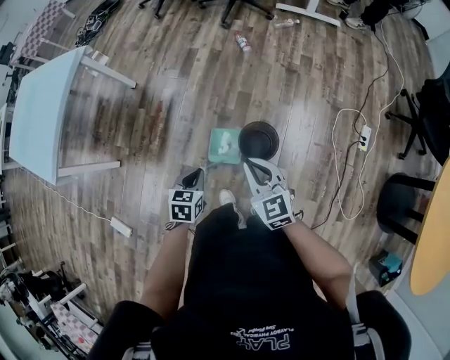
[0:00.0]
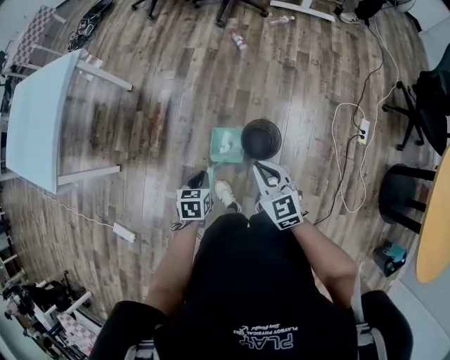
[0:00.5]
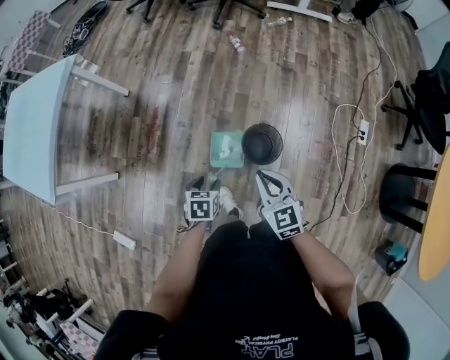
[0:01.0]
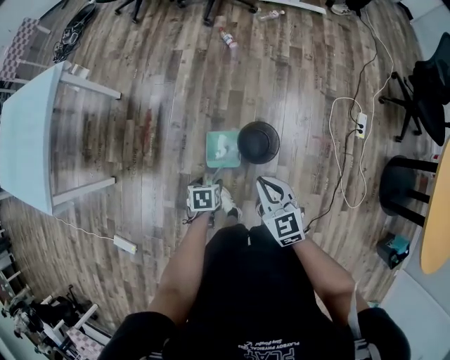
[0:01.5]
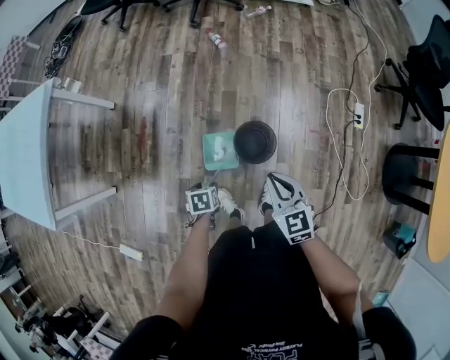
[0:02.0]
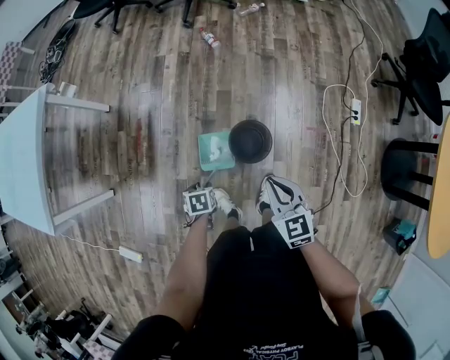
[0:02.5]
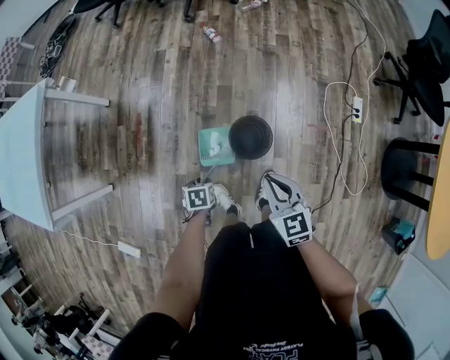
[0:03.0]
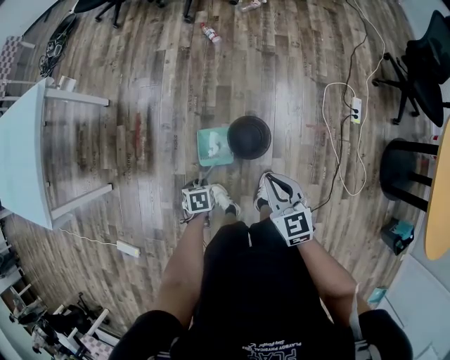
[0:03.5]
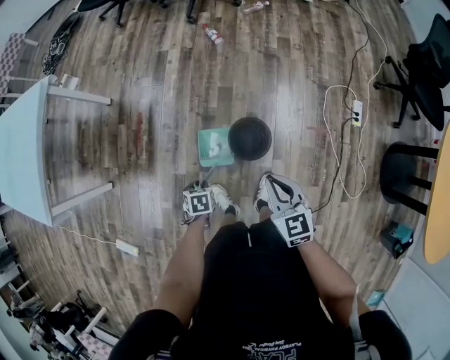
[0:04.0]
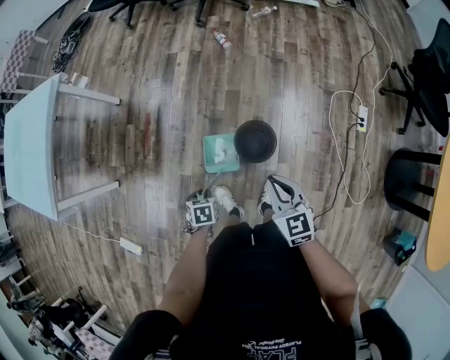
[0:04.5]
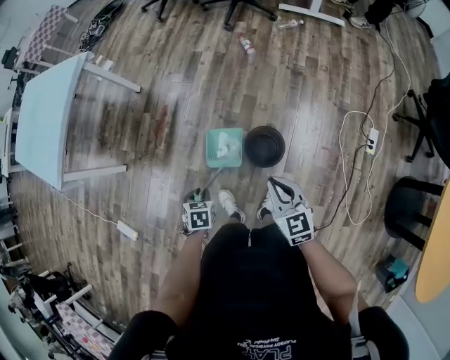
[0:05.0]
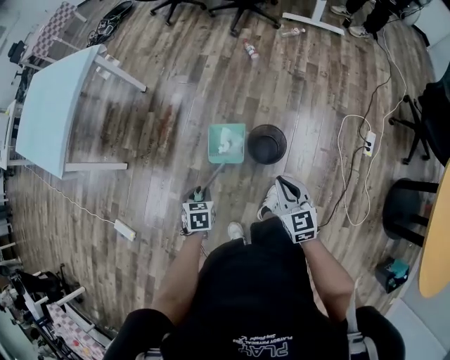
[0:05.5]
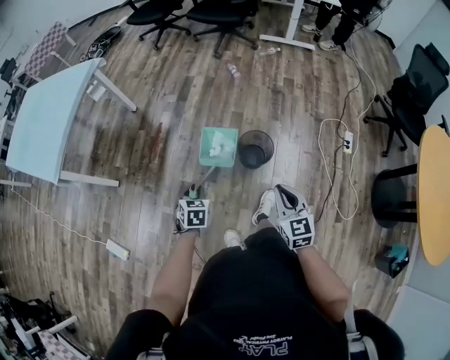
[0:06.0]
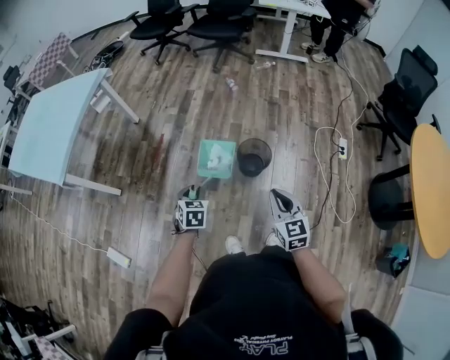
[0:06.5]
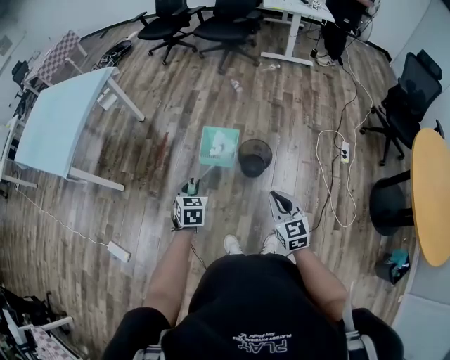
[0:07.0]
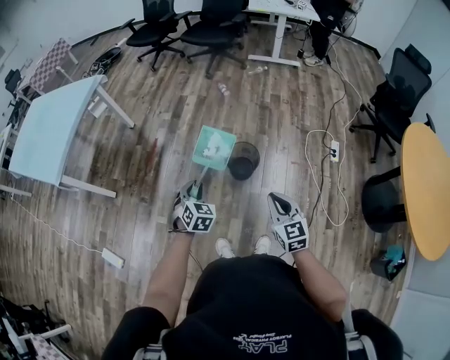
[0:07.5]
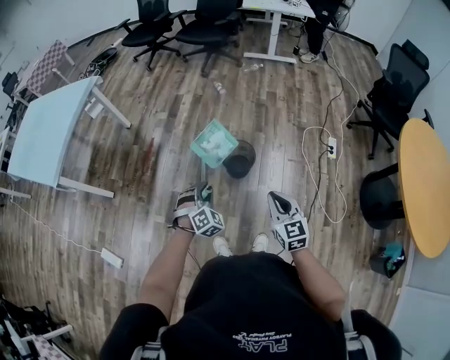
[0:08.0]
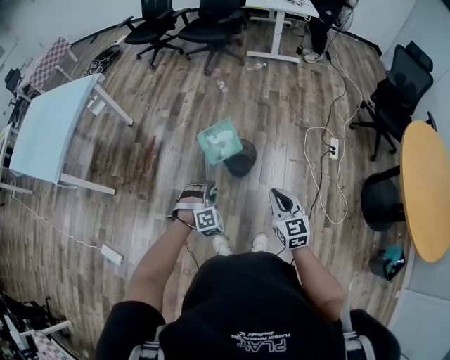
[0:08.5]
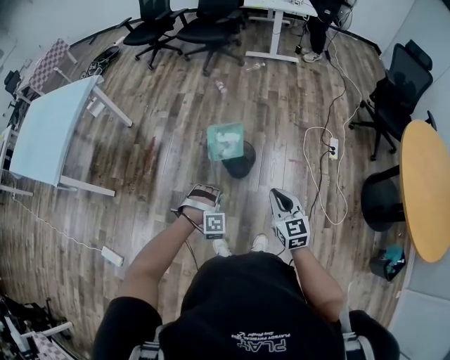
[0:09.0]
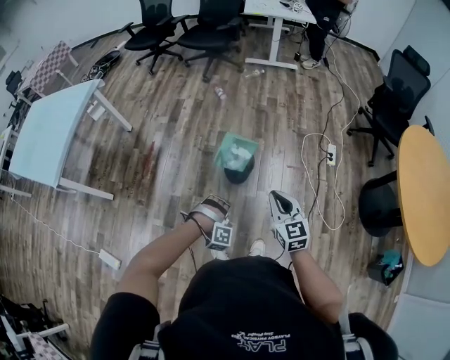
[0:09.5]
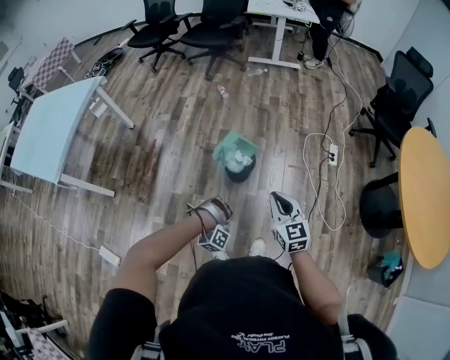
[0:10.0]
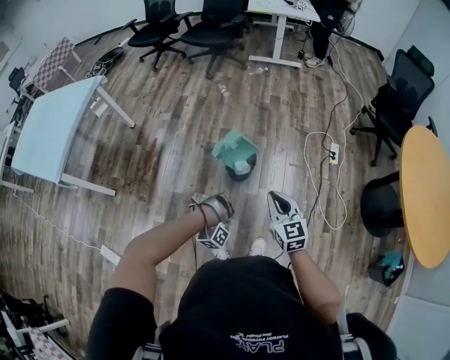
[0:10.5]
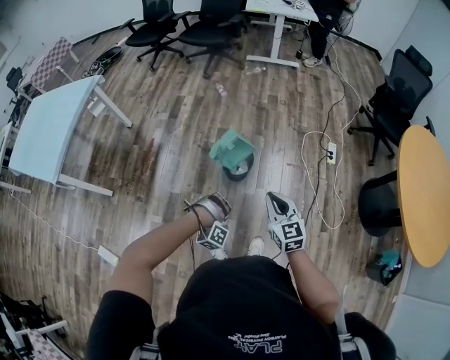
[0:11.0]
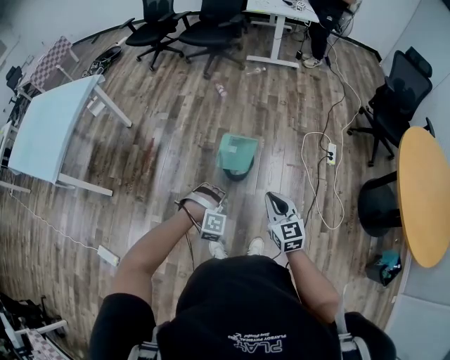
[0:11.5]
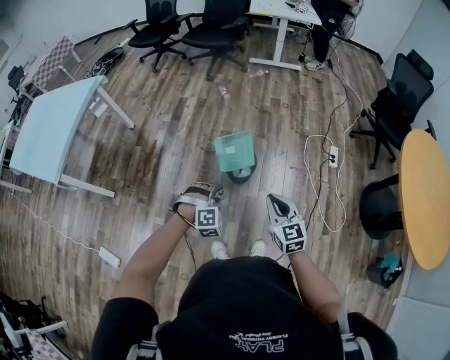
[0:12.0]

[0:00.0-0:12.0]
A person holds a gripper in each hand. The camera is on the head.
0.0 to 2.0 s: The left gripper travels downward by about 15 cm, changes its angle by approximately 30 degrees, and opens up; the right gripper travels downward by some 5 cm.
2.0 to 4.0 s: The left gripper closes its fingers.
4.0 to 6.0 s: The left gripper ends up about 20 cm from where it was, and swivels about 20 degrees; the right gripper ends up approximately 20 cm from where it was.
6.0 to 8.0 s: The right gripper moves backward and to the right, approximately 10 cm; the left gripper shifts about 15 cm to the right, upward and backward, and twists about 50 degrees clockwise, seen from behind.
8.0 to 10.0 s: The left gripper heads backward, downward and to the right, covering about 15 cm, and rolls clockwise, seen from behind, by about 80 degrees.
10.0 to 12.0 s: The left gripper moves upward and forward, roughly 10 cm, and rotates around the line of its fingers by roughly 50 degrees, counterclockwise from behind.

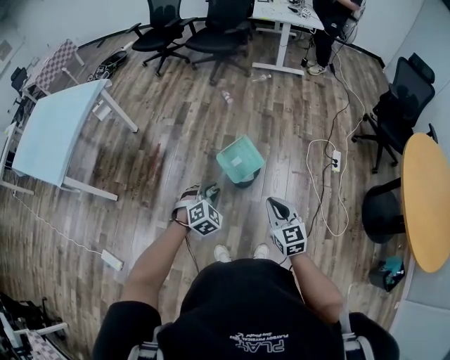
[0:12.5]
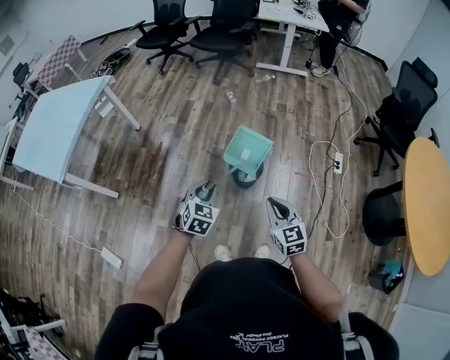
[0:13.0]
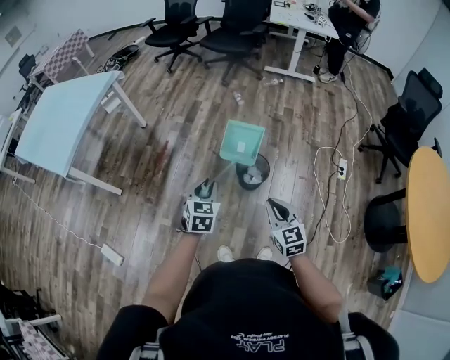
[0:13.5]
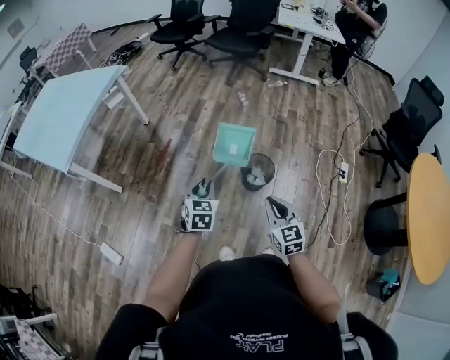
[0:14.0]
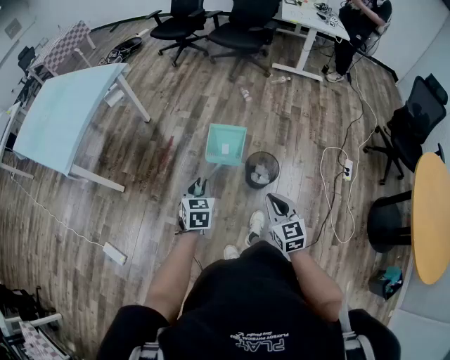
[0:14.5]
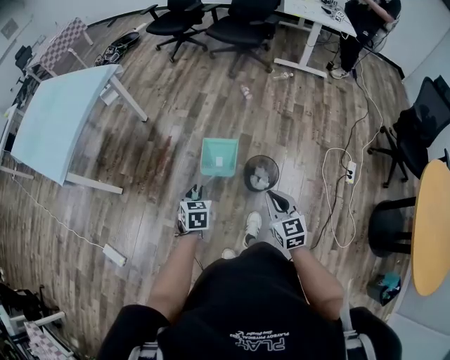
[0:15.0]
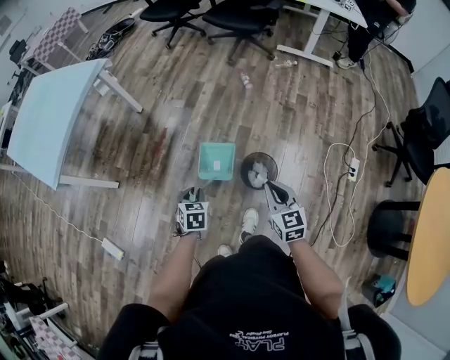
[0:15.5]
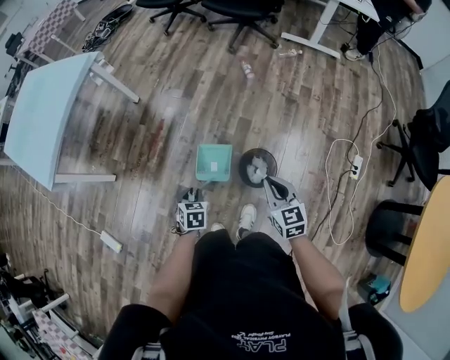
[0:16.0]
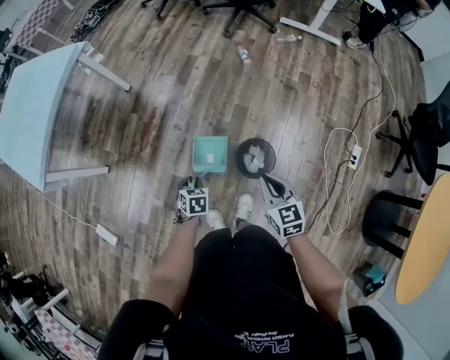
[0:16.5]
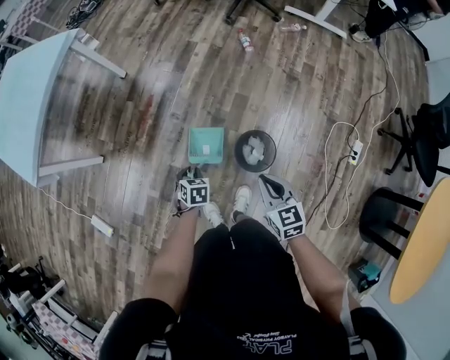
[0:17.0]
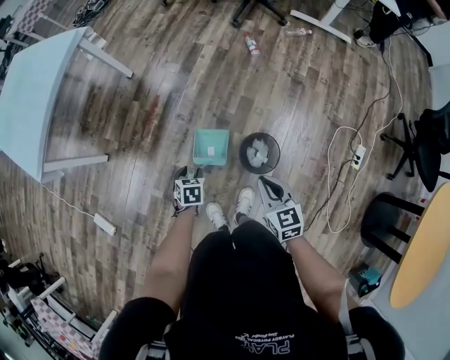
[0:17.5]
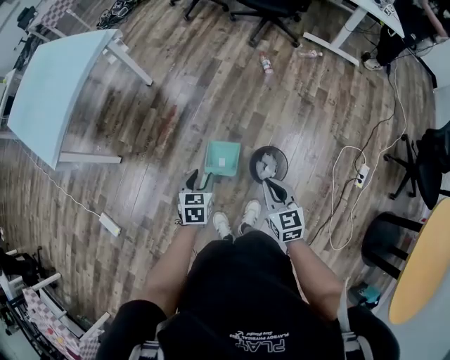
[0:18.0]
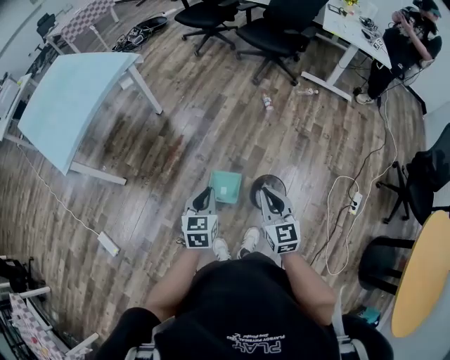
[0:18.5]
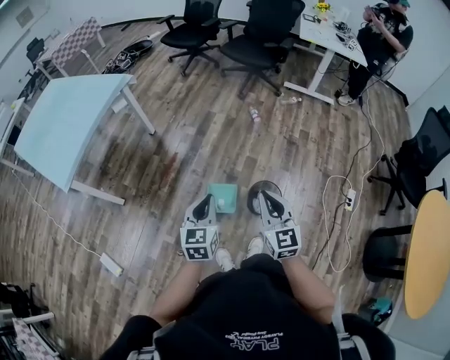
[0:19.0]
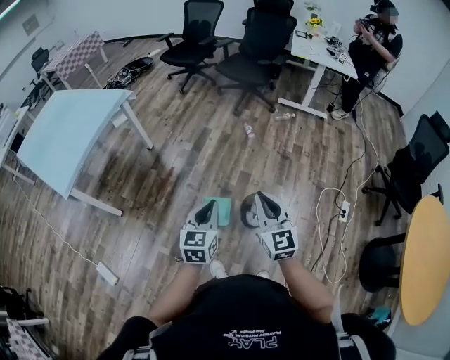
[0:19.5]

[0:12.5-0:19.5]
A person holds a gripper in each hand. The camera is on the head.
12.5 to 14.5 s: The right gripper shifts roughly 15 cm to the left and forward; the left gripper is displaced to the left by about 20 cm, and rotates around the line of its fingers by roughly 50 degrees, counterclockwise from behind.
14.5 to 16.0 s: The left gripper is displaced downward, forward and to the right by about 20 cm, and rotates approximately 20 degrees, while the right gripper moves forward and to the right, roughly 25 cm.
16.0 to 17.5 s: The right gripper shifts by about 5 cm, while the left gripper heads downward, covering some 10 cm, and opens.
17.5 to 19.5 s: Both grippers move upward, some 30 cm. The left gripper tilts its fingers about 50 degrees upward, and closes its fingers. Meanwhile the right gripper swivels some 30 degrees.

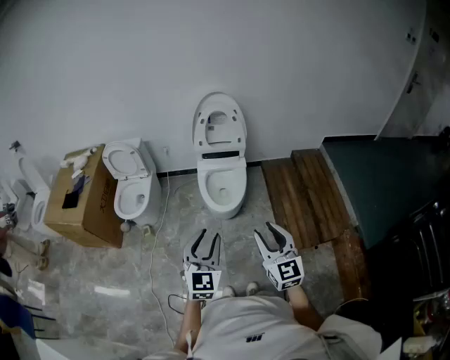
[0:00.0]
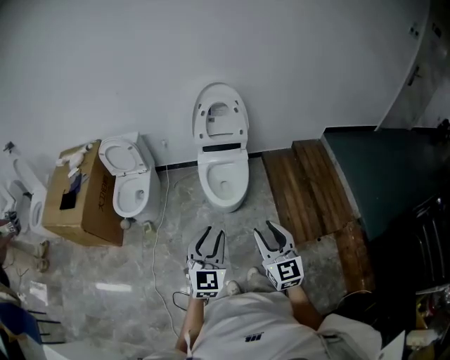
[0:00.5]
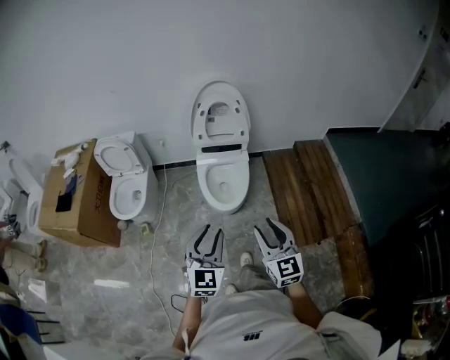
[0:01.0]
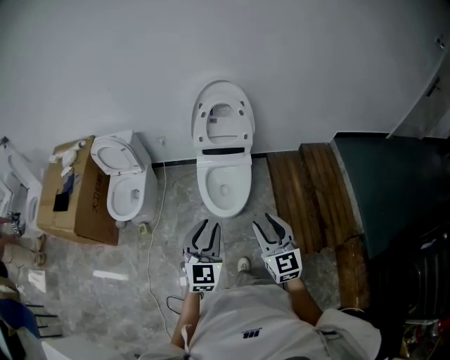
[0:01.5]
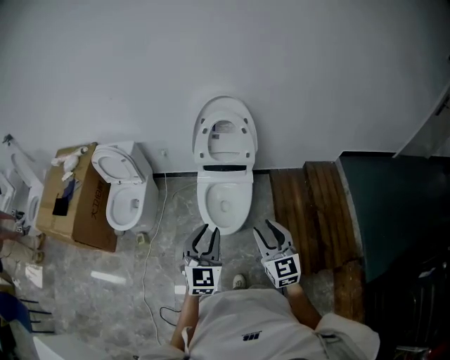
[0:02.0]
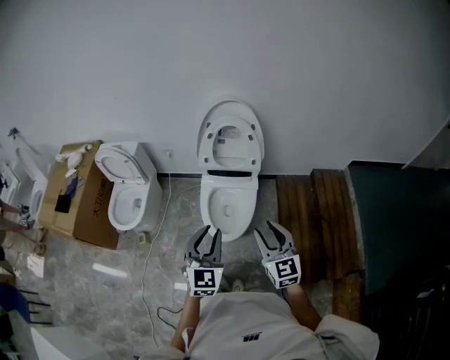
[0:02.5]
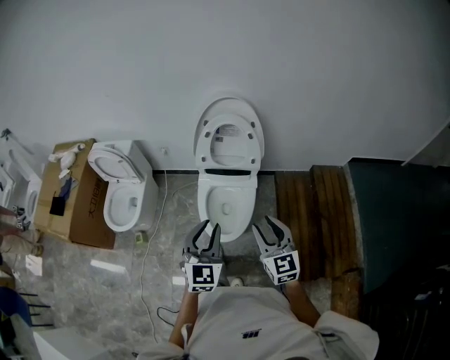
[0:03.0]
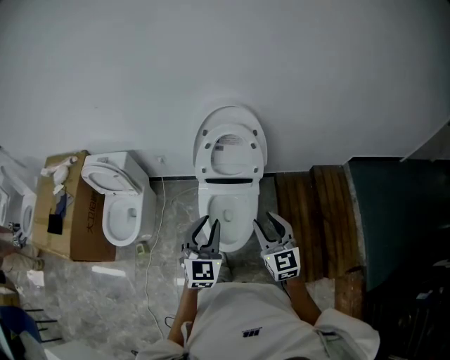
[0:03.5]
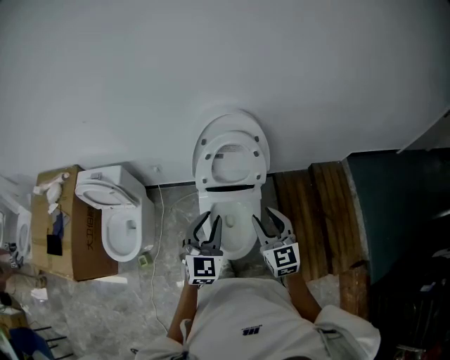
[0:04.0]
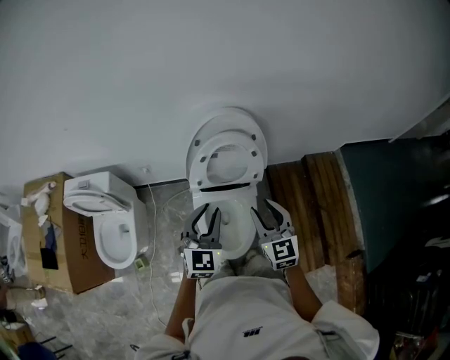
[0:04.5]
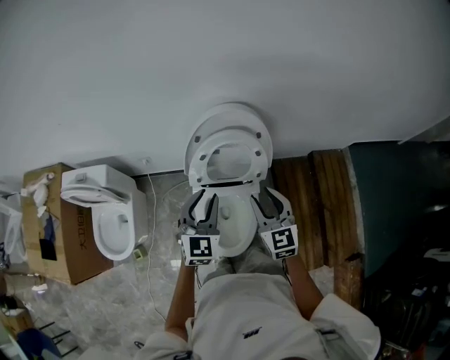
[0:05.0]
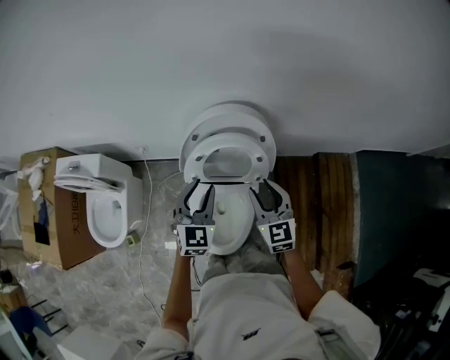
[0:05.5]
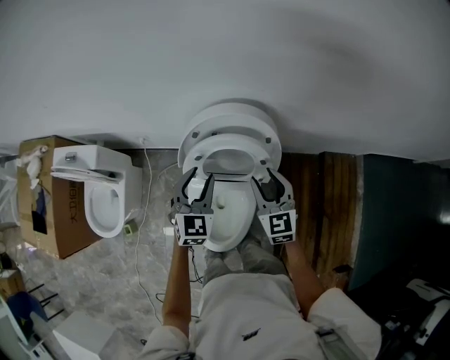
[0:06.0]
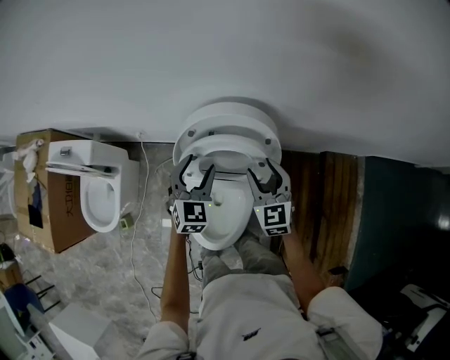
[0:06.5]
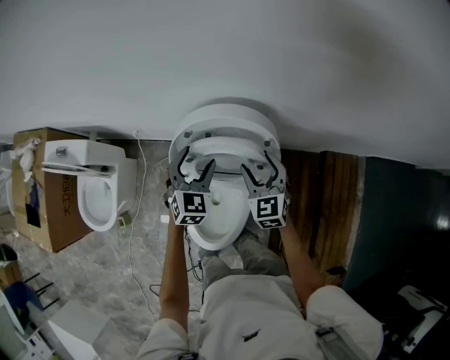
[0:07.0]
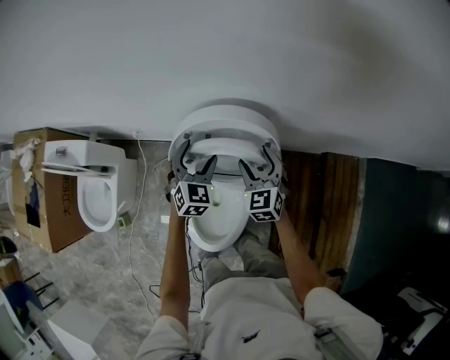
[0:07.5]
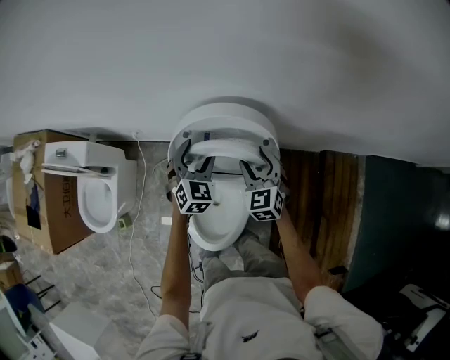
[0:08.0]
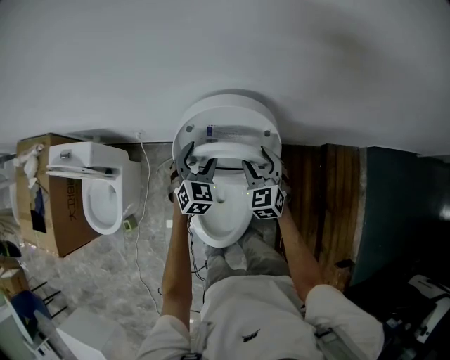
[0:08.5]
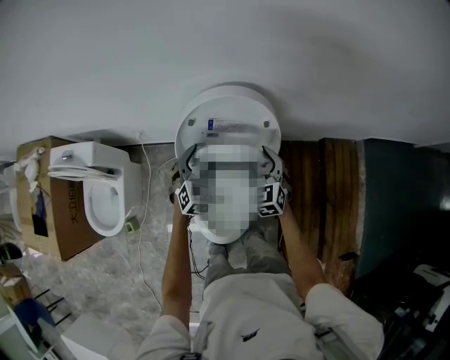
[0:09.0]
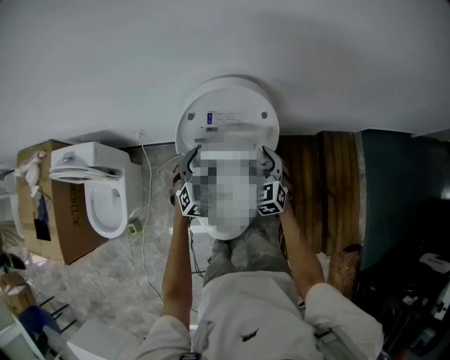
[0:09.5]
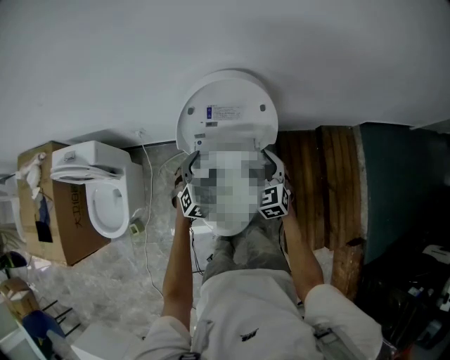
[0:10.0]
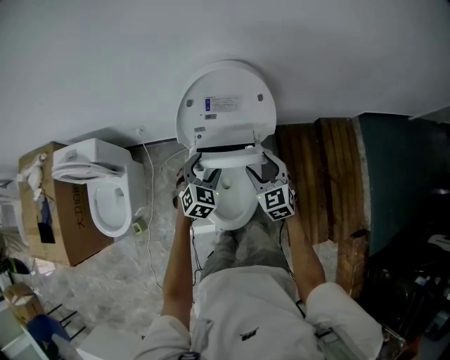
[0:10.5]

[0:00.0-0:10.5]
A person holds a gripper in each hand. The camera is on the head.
0.0 to 2.0 s: Both grippers move forward, approximately 30 cm.
2.0 to 4.0 s: The two grippers go roughly 35 cm forward.
4.0 to 6.5 s: Both grippers move forward and downward, about 35 cm. The left gripper opens its fingers.
6.5 to 8.5 s: The right gripper ends up about 5 cm from where it was. The left gripper moves some 5 cm.
8.5 to 10.5 s: The grippers both shift backward by approximately 15 cm.
